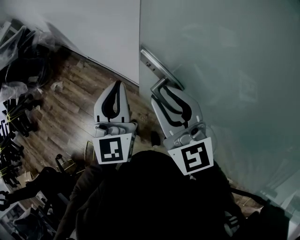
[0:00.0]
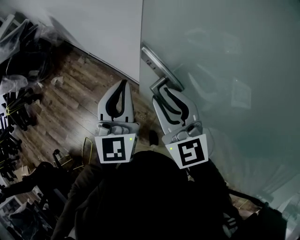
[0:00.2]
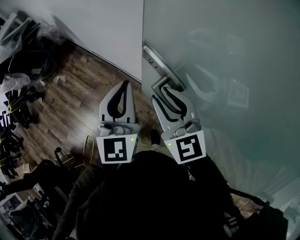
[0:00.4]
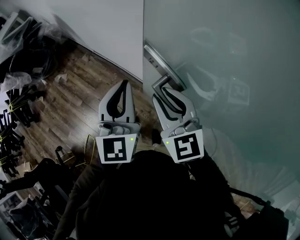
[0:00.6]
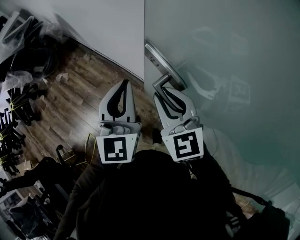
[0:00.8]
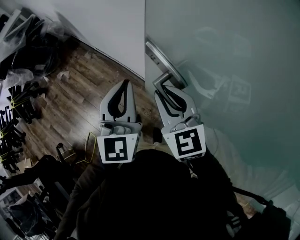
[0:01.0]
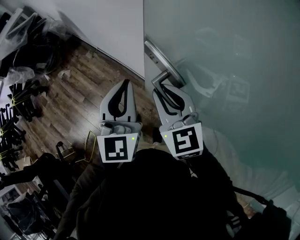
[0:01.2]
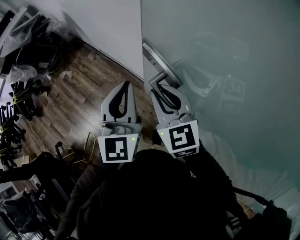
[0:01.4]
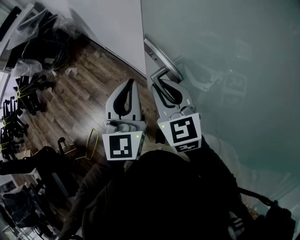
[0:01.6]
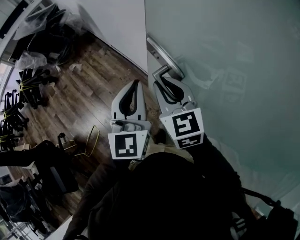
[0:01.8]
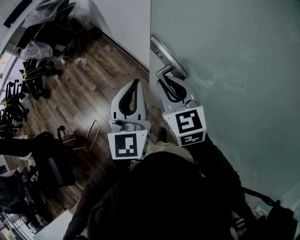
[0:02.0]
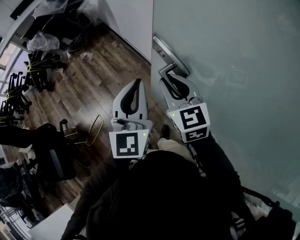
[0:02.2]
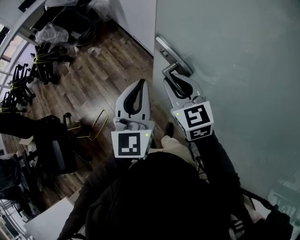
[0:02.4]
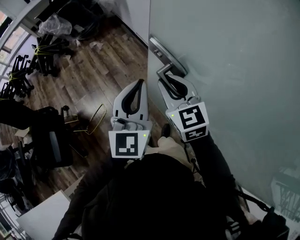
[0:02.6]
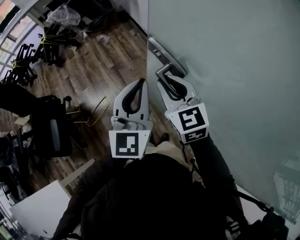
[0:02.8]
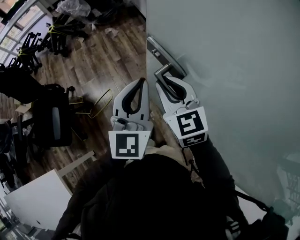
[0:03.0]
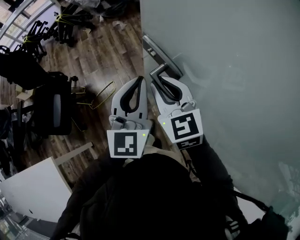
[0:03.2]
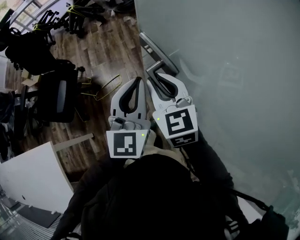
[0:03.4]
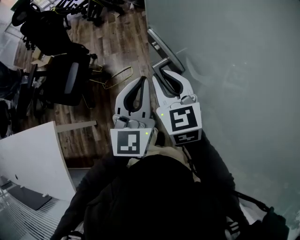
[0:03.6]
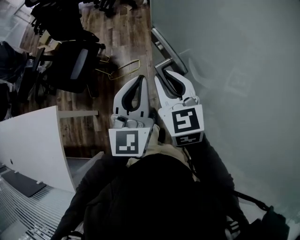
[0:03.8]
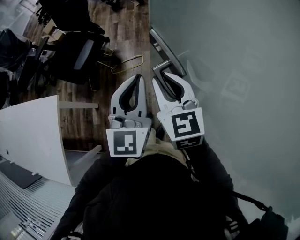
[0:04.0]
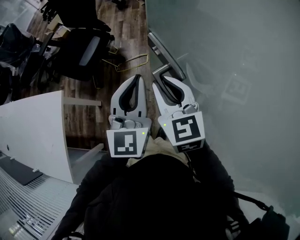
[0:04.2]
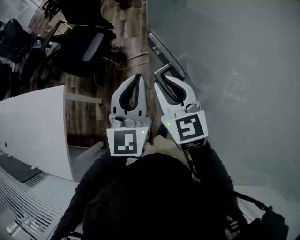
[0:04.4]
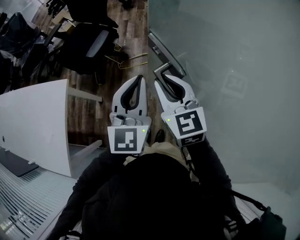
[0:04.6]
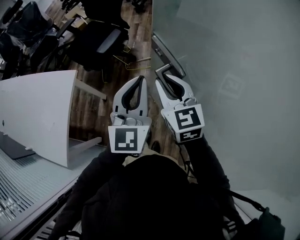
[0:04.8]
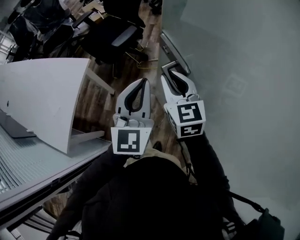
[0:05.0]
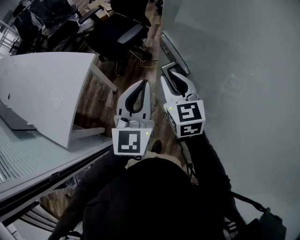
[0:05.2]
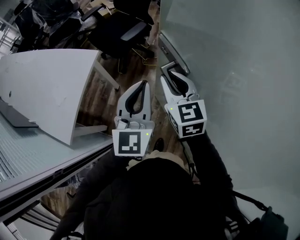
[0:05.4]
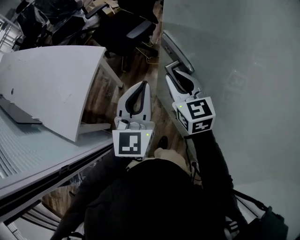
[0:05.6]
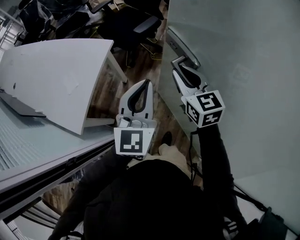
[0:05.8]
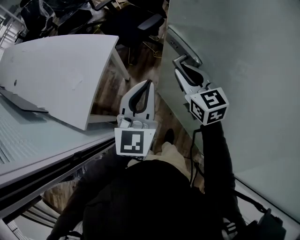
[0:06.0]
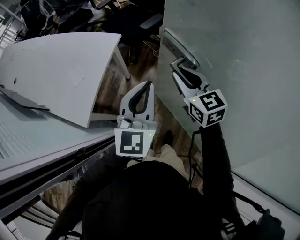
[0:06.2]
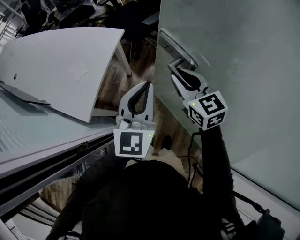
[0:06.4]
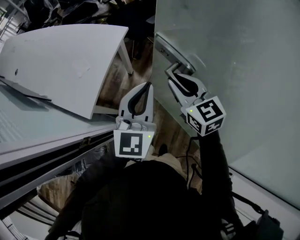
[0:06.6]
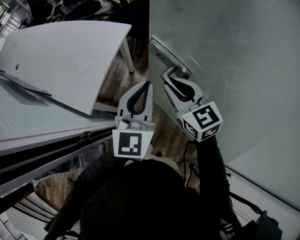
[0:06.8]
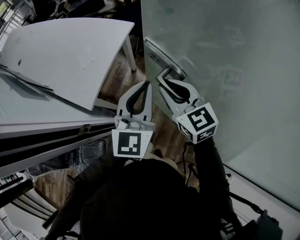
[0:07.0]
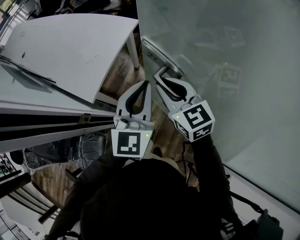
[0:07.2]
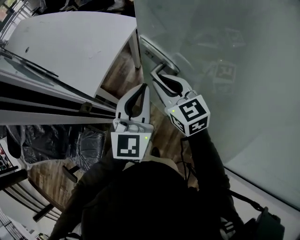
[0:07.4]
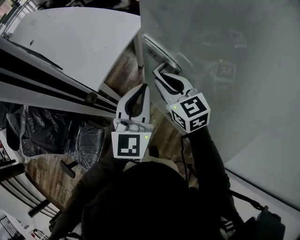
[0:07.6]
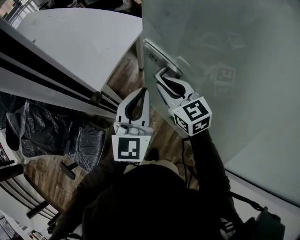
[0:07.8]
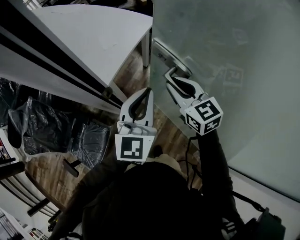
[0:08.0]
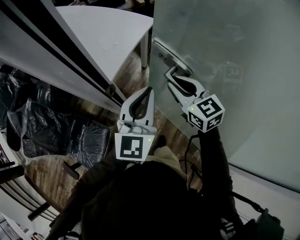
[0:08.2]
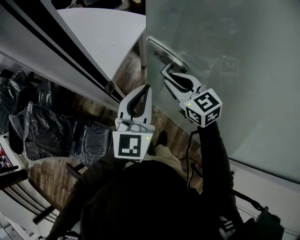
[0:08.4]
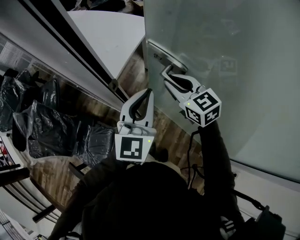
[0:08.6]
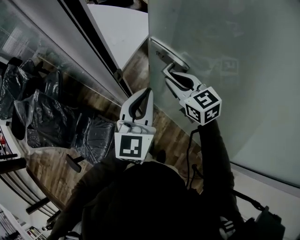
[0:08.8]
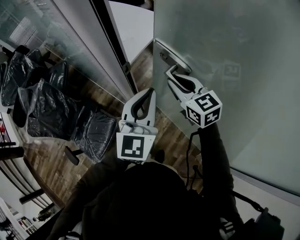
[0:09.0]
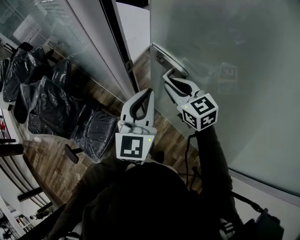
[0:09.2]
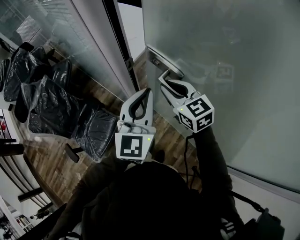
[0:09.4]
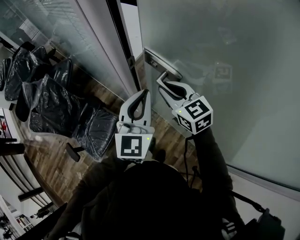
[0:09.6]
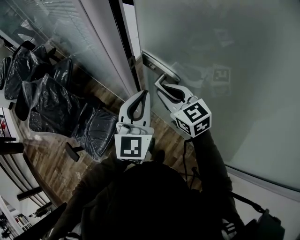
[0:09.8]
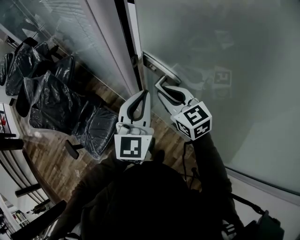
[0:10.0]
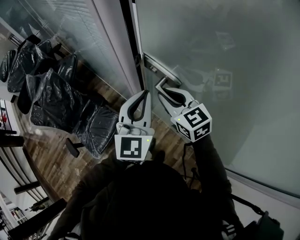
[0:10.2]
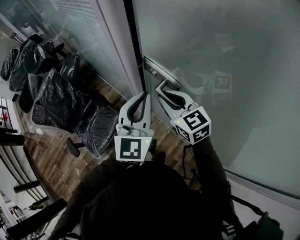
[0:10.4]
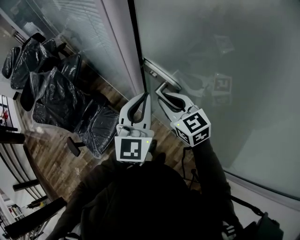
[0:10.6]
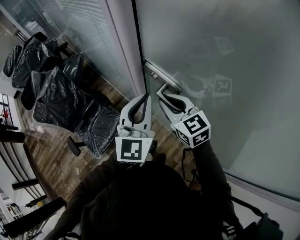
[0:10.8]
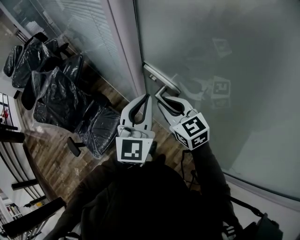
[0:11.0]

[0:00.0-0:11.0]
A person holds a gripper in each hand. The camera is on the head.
0:00.0 to 0:01.6: The left gripper goes approximately 5 cm backward, while the right gripper is displaced downward by about 10 cm.
0:01.6 to 0:03.2: The pair of grippers is taken to the left and backward, roughly 40 cm. The left gripper rotates roughly 20 degrees; the right gripper changes its angle by about 30 degrees.
0:03.2 to 0:04.8: The left gripper ends up some 35 cm from where it was, and swivels approximately 30 degrees, while the right gripper ends up approximately 35 cm from where it was, and turns by approximately 30 degrees.
0:04.8 to 0:06.2: The two grippers go roughly 20 cm to the left and backward.
0:06.2 to 0:07.8: The left gripper shifts roughly 20 cm backward and to the left; the right gripper heads to the left and backward, covering some 25 cm.
0:07.8 to 0:09.4: Both grippers travel together to the left and backward, approximately 15 cm.
0:09.4 to 0:11.0: The right gripper goes roughly 5 cm to the left.

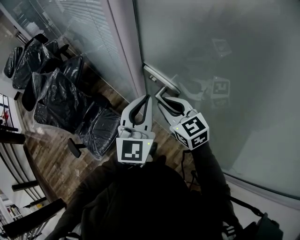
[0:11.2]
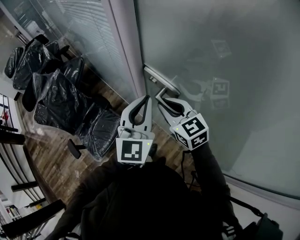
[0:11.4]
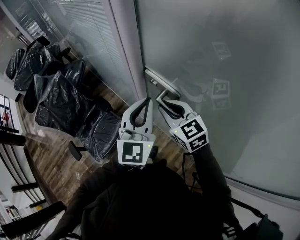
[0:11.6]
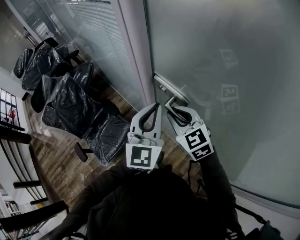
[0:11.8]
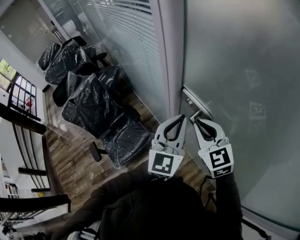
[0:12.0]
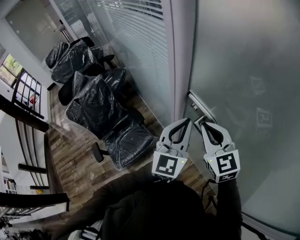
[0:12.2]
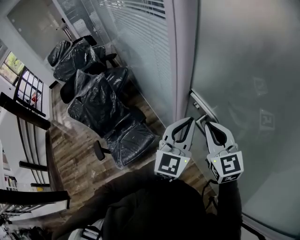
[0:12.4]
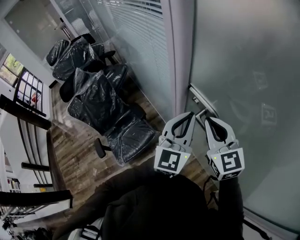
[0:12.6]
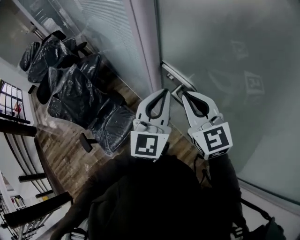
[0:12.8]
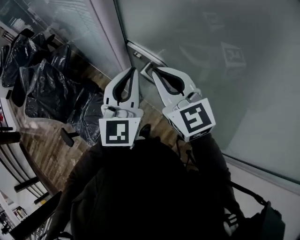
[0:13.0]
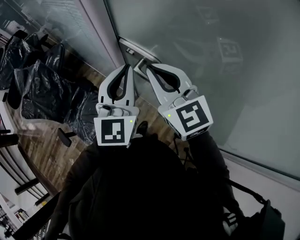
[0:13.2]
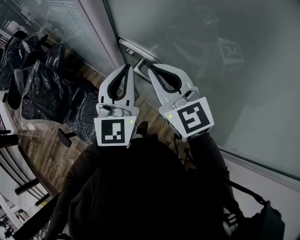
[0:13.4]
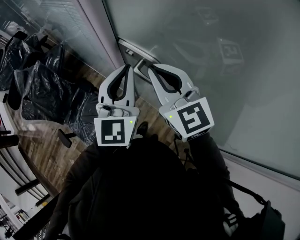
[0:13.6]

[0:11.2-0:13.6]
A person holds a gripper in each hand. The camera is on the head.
0:11.2 to 0:12.4: The right gripper travels upward by some 5 cm.
0:12.4 to 0:13.6: There are only small adjustments of the grippers.

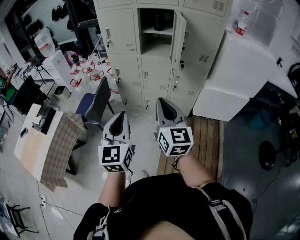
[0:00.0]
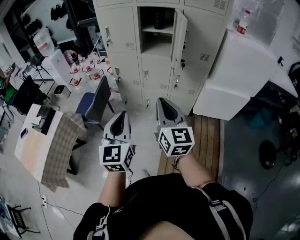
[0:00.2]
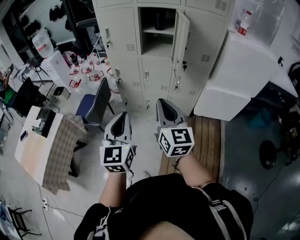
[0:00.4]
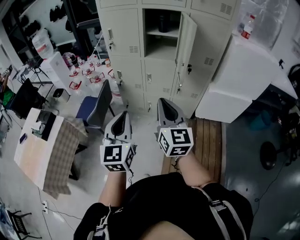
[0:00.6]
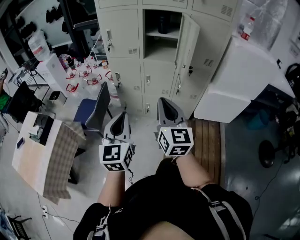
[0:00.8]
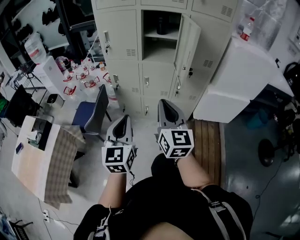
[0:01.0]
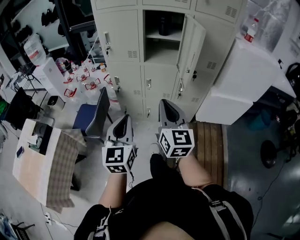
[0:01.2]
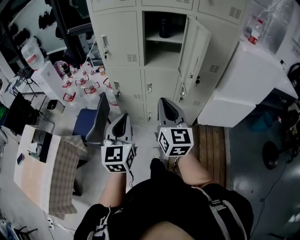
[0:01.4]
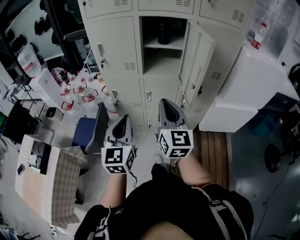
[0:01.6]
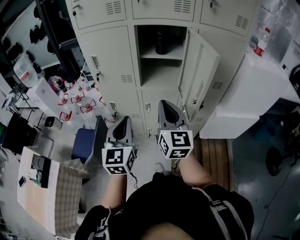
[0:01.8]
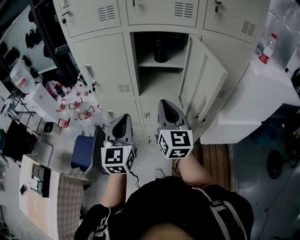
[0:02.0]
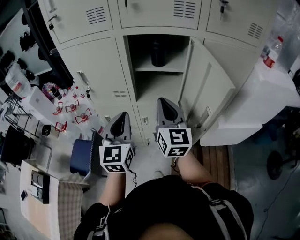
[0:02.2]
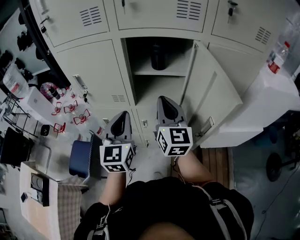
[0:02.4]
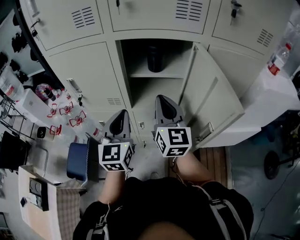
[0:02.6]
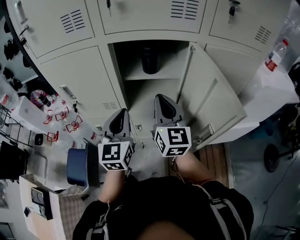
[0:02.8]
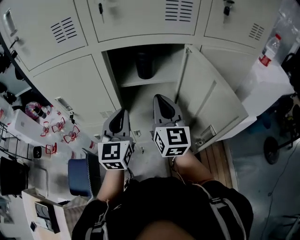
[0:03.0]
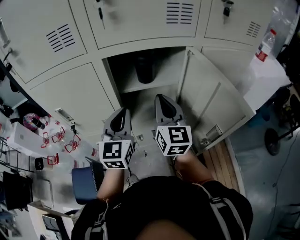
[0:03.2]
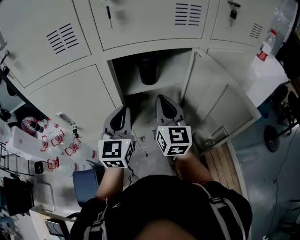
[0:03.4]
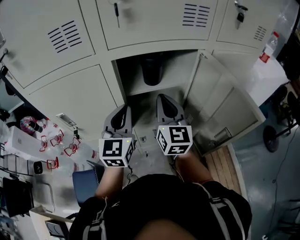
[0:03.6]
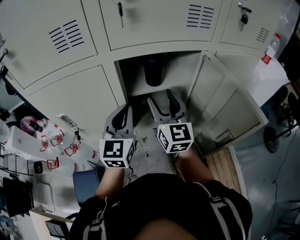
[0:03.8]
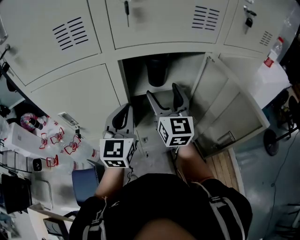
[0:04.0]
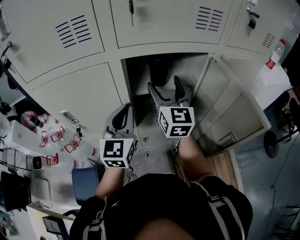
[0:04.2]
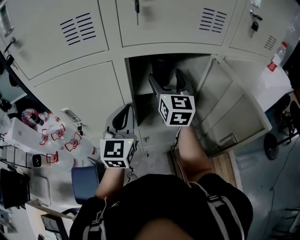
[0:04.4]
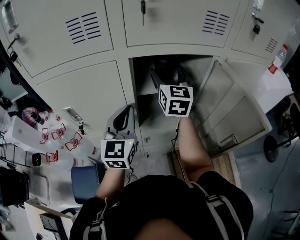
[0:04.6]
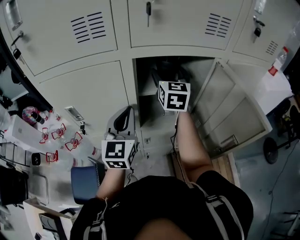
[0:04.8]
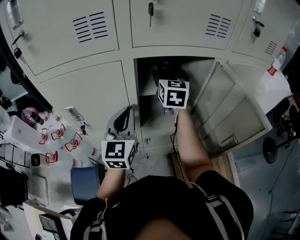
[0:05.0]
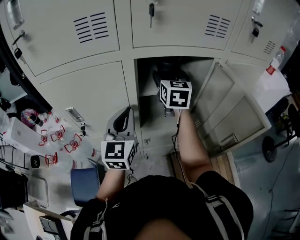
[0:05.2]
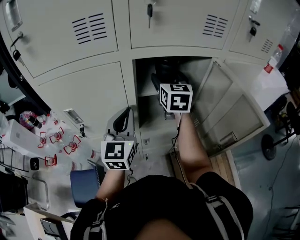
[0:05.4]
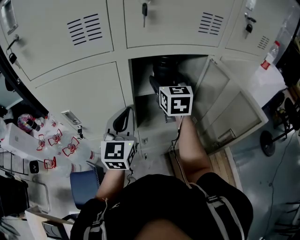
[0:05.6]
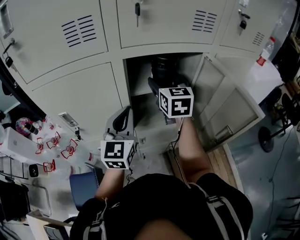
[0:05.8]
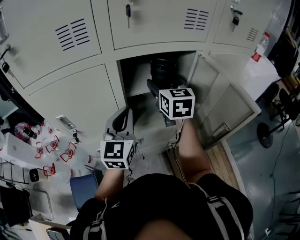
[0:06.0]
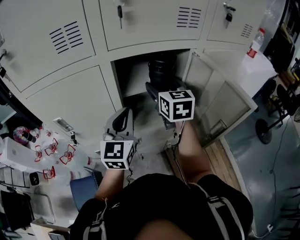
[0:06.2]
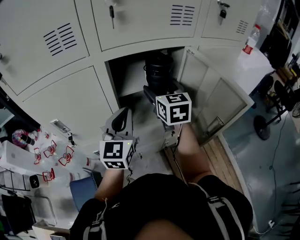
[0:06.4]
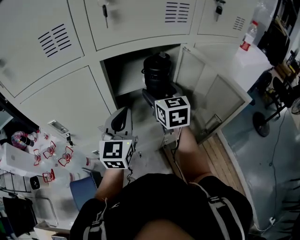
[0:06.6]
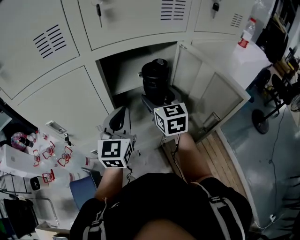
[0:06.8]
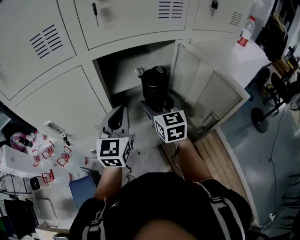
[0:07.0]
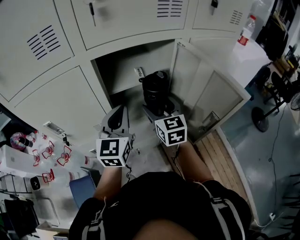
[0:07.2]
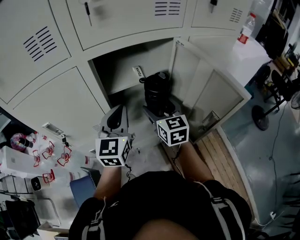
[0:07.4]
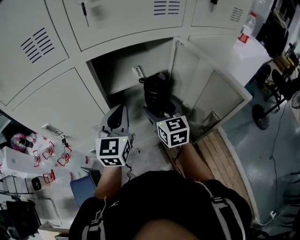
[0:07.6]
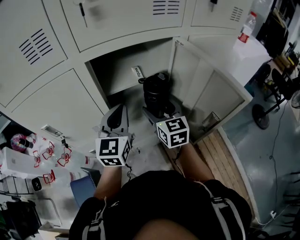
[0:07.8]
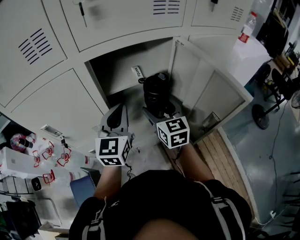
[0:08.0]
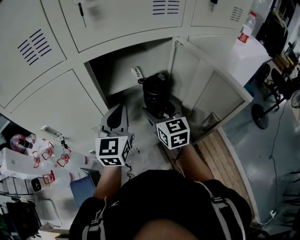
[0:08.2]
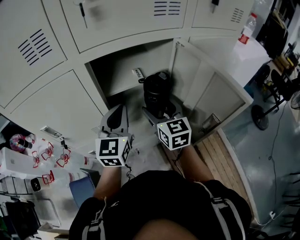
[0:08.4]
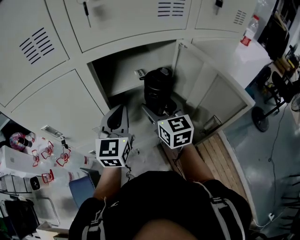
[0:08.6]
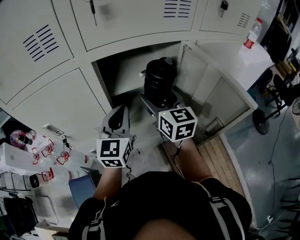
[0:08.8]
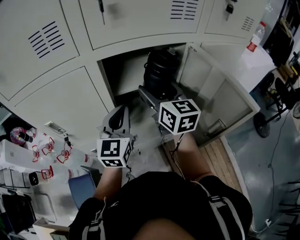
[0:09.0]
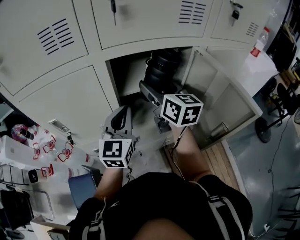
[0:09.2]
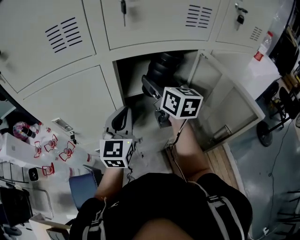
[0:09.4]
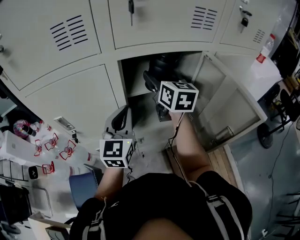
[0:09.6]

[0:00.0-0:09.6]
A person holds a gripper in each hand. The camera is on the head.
0:00.0 to 0:01.6: Both grippers travel together forward, approximately 25 cm.
0:01.6 to 0:03.2: Both grippers travel together forward, about 40 cm.
0:03.2 to 0:04.8: The left gripper shifts roughly 5 cm to the left, while the right gripper goes approximately 15 cm forward, and opens its fingers.
0:04.8 to 0:06.4: The left gripper moves to the right, roughly 5 cm; the right gripper travels backward and to the right by about 10 cm.
0:06.4 to 0:08.0: The right gripper shifts about 10 cm downward.
0:08.0 to 0:09.6: The right gripper shifts some 15 cm upward, forward and to the left. The left gripper shifts about 5 cm to the left.

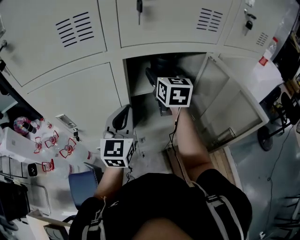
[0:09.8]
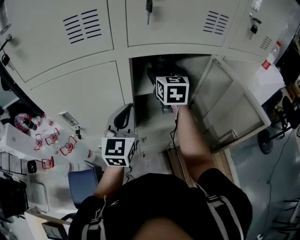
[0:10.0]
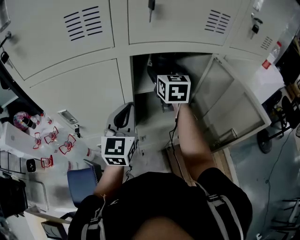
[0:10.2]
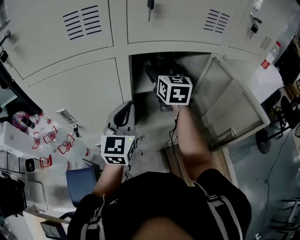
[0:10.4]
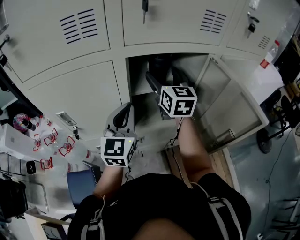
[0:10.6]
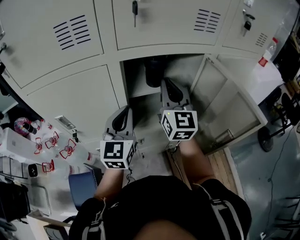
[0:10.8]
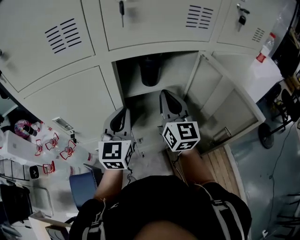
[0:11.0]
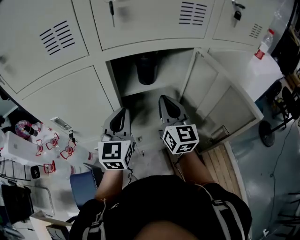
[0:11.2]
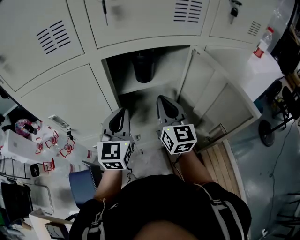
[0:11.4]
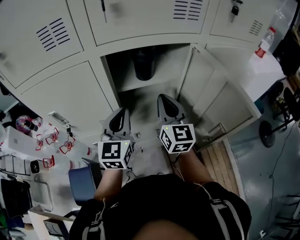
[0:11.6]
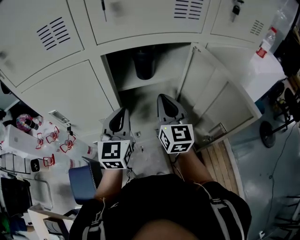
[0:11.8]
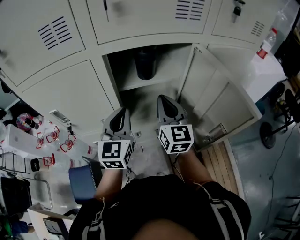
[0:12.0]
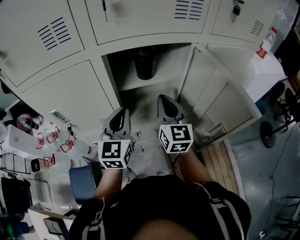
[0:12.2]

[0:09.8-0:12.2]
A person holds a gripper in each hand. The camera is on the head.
0:09.8 to 0:11.0: The right gripper goes about 10 cm backward, and closes.
0:11.0 to 0:12.2: The grippers make only small movements.
